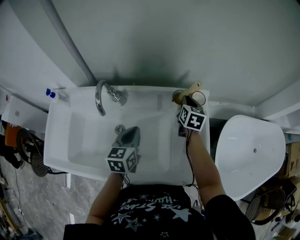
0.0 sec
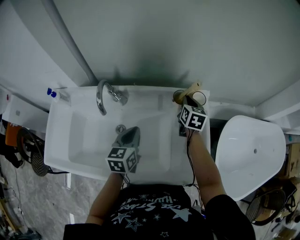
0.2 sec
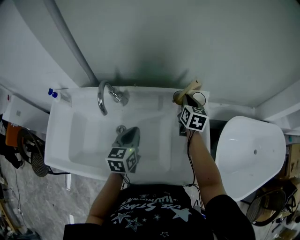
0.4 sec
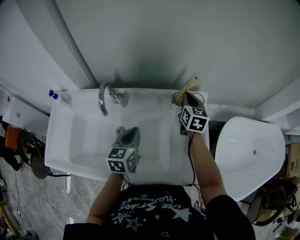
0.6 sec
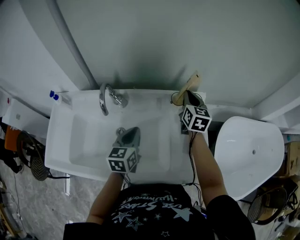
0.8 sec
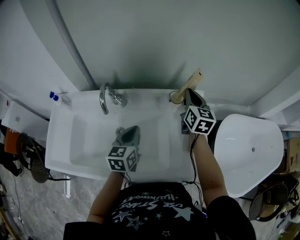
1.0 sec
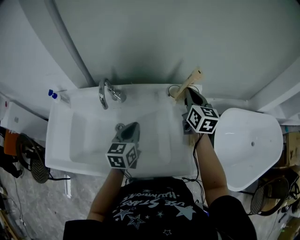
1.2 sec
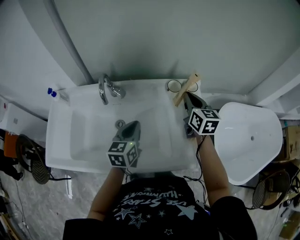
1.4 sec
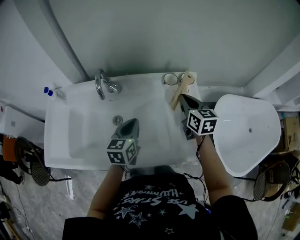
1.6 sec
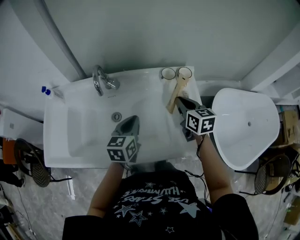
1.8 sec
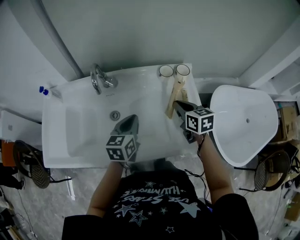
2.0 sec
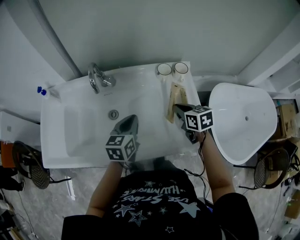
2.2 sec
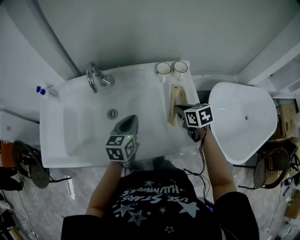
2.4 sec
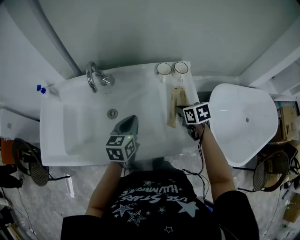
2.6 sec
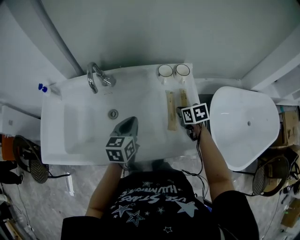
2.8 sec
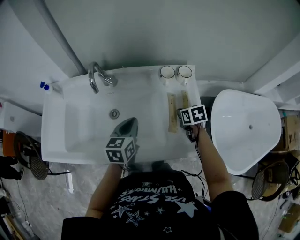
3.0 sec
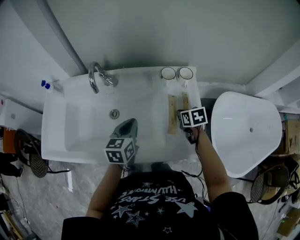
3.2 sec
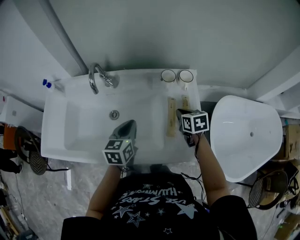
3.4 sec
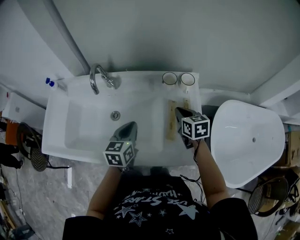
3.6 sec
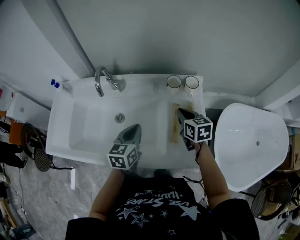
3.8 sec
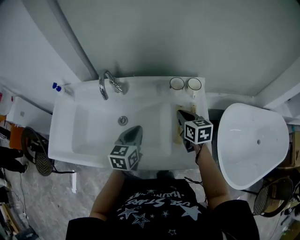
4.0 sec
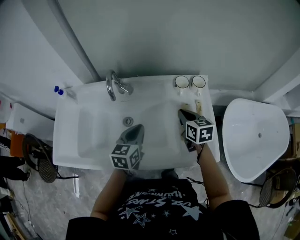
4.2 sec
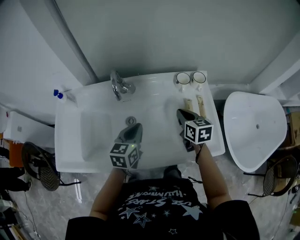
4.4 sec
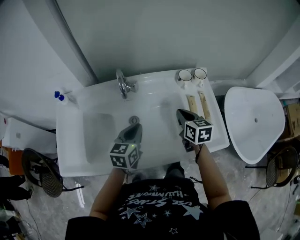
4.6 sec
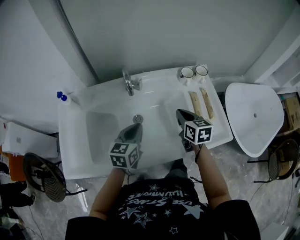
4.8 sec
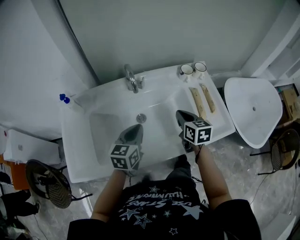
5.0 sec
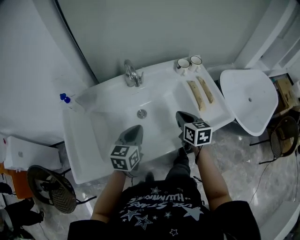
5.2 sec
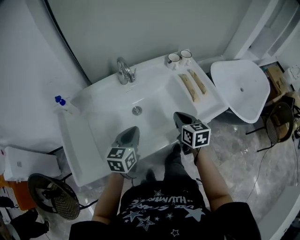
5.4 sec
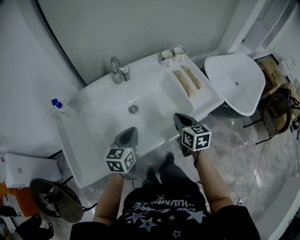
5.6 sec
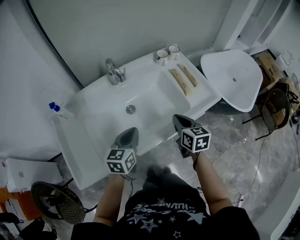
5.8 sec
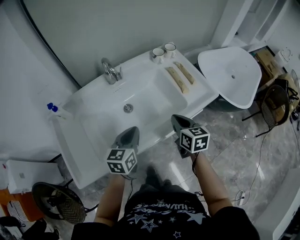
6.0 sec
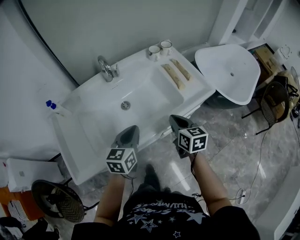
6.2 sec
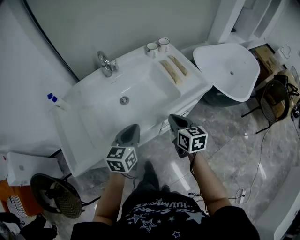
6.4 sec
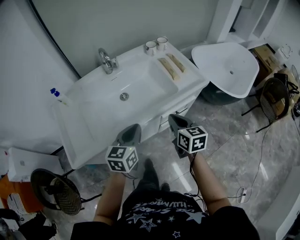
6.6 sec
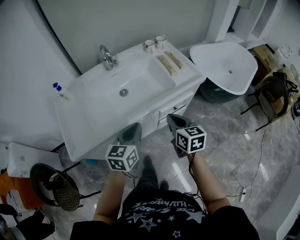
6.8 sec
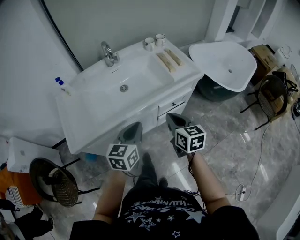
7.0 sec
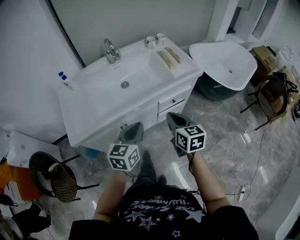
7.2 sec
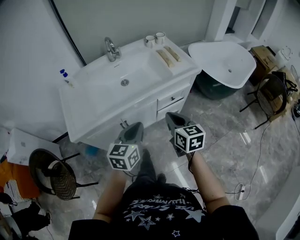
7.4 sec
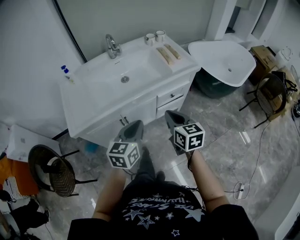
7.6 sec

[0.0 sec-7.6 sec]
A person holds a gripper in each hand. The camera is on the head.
0.0 sec to 1.6 sec: The left gripper moves backward, roughly 5 cm. The right gripper heads backward and upward, covering approximately 15 cm.
1.6 sec to 3.0 sec: The right gripper goes about 15 cm downward, and angles its fingers downward, by roughly 30 degrees.
3.0 sec to 4.6 sec: The right gripper moves to the left and upward, approximately 15 cm, and rotates roughly 30 degrees, while the left gripper moves to the left, about 10 cm.
4.6 sec to 6.0 sec: The right gripper heads backward, covering some 20 cm, and changes its angle by roughly 20 degrees, while the left gripper is displaced backward by roughly 15 cm.
6.0 sec to 7.6 sec: The two grippers go about 25 cm backward.

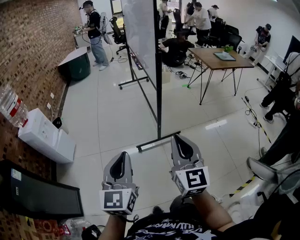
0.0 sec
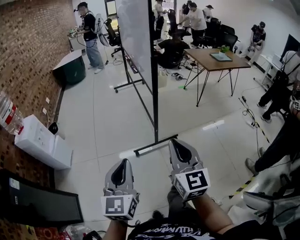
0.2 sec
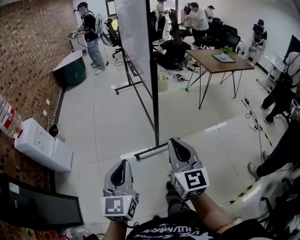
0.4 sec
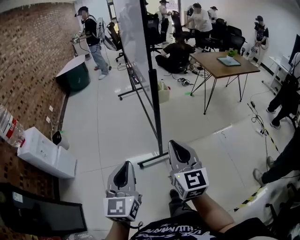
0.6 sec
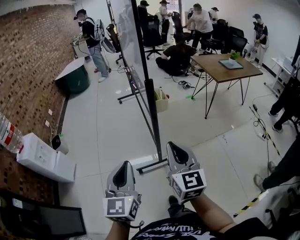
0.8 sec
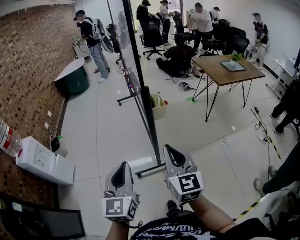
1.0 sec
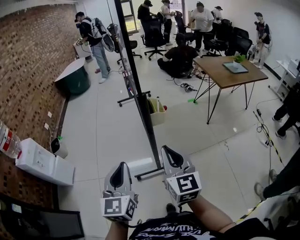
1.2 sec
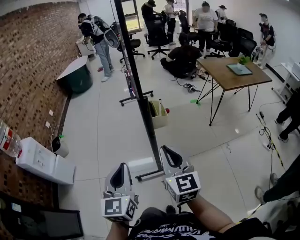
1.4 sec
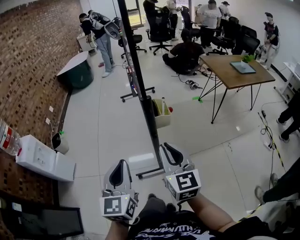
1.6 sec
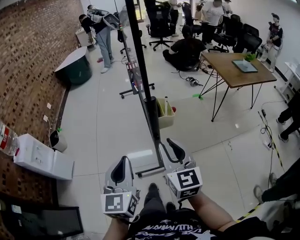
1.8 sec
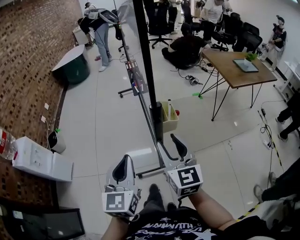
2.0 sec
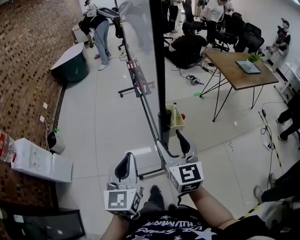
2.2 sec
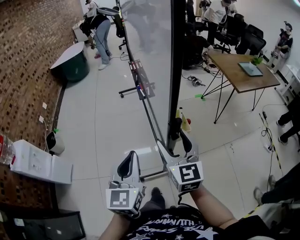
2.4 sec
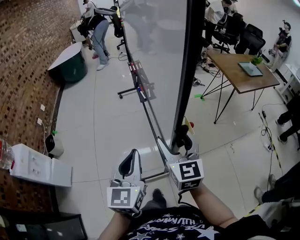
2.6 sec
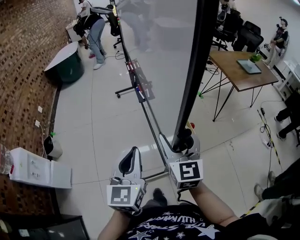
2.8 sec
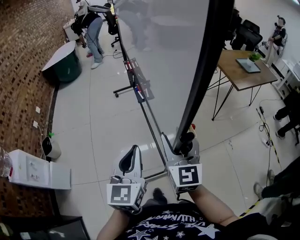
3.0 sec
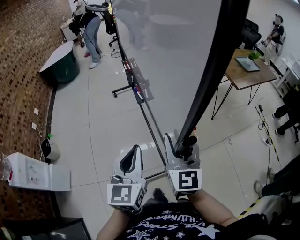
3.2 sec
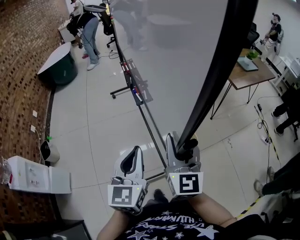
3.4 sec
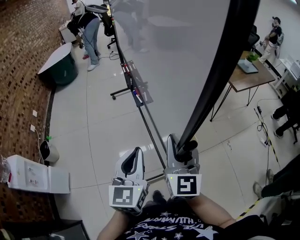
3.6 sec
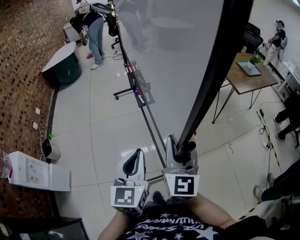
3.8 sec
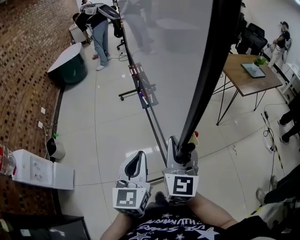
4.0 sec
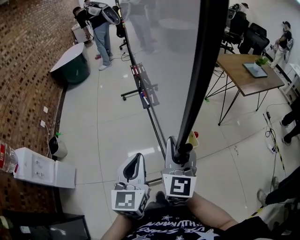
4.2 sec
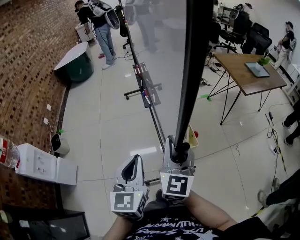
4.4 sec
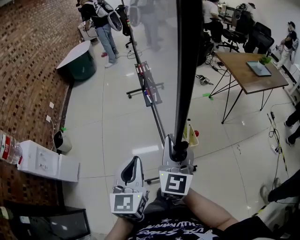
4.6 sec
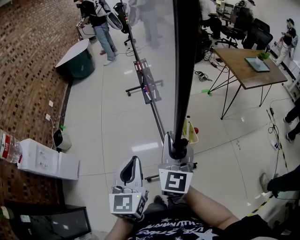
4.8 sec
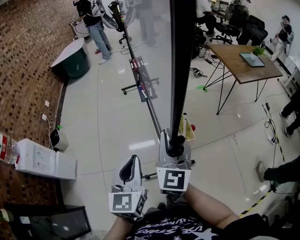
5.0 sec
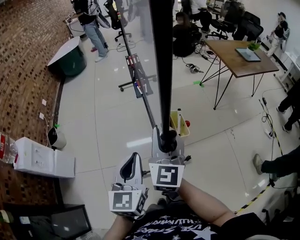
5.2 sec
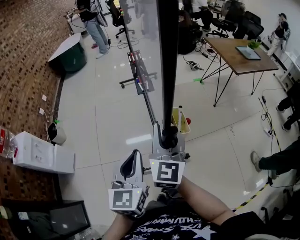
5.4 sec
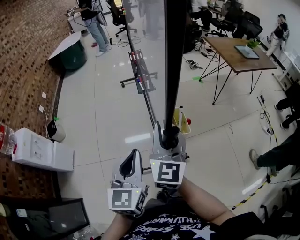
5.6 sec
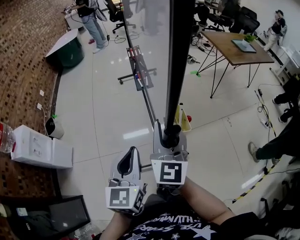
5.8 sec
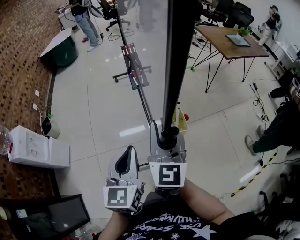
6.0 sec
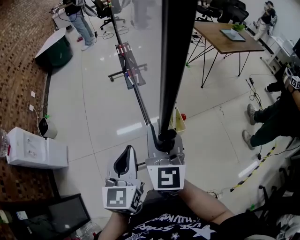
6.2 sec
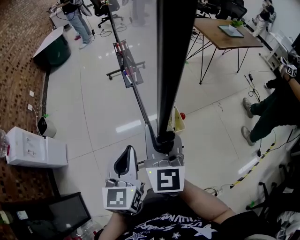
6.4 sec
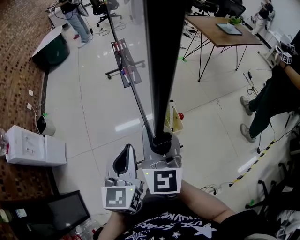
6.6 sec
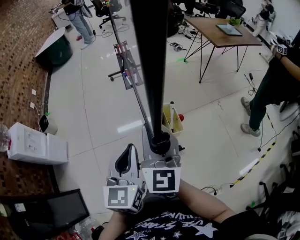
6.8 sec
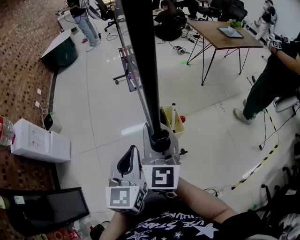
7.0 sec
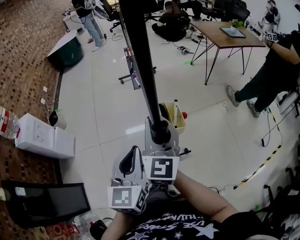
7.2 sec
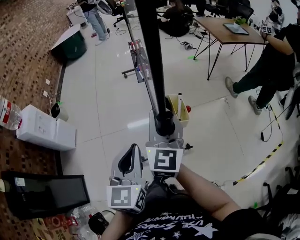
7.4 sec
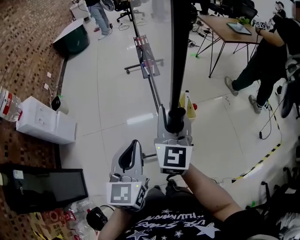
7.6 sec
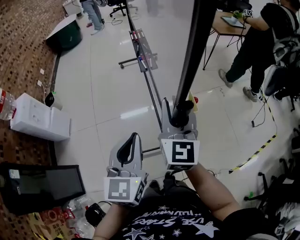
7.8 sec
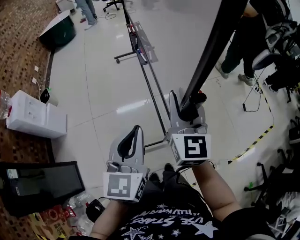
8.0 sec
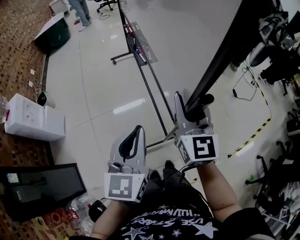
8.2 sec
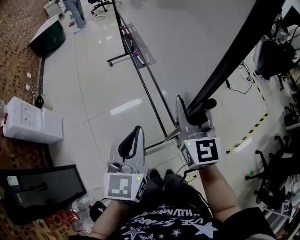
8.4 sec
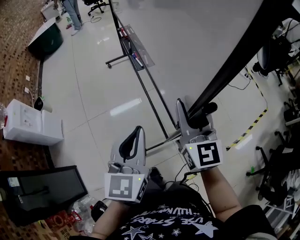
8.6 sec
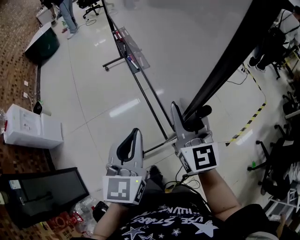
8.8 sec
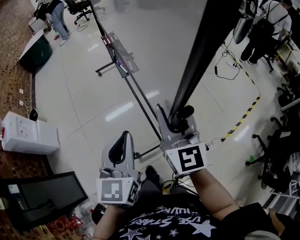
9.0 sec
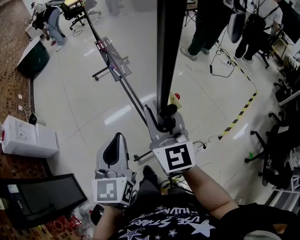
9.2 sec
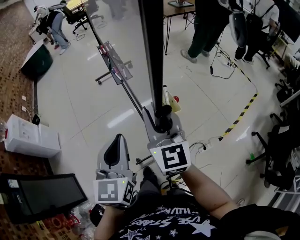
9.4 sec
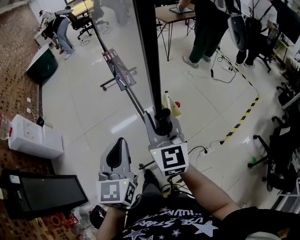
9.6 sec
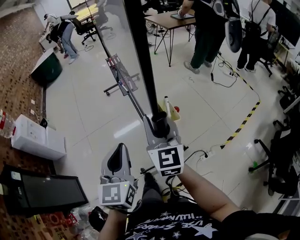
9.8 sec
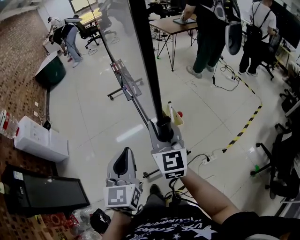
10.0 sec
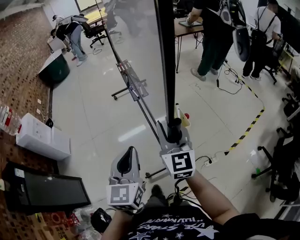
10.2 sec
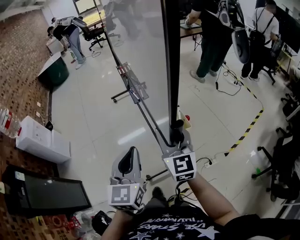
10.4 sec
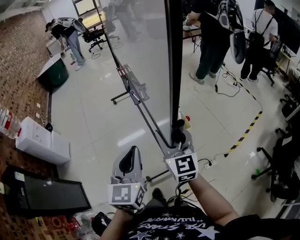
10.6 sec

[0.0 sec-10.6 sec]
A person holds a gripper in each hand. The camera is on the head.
0.0 sec to 1.6 sec: Both grippers move forward, about 30 cm.
1.6 sec to 3.0 sec: The grippers both shift forward by some 15 cm. The right gripper opens up.
3.0 sec to 4.6 sec: The left gripper heads backward, covering about 5 cm; the right gripper closes up.
4.6 sec to 6.0 sec: The grippers both shift backward by about 15 cm.
6.0 sec to 7.6 sec: Both grippers travel together backward, about 15 cm.
7.6 sec to 9.0 sec: The left gripper heads backward and to the right, covering some 15 cm. Meanwhile the right gripper shifts approximately 20 cm backward and to the right.
9.0 sec to 10.6 sec: The two grippers go roughly 10 cm backward. The right gripper opens up.

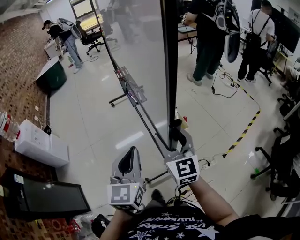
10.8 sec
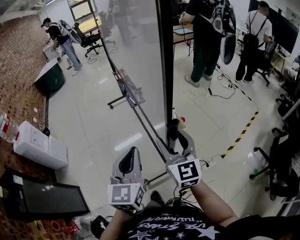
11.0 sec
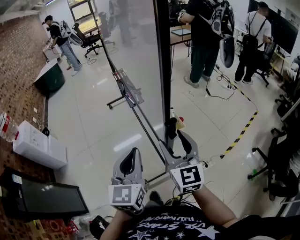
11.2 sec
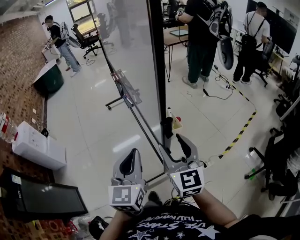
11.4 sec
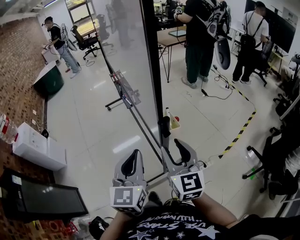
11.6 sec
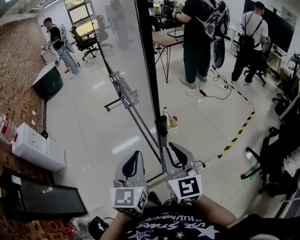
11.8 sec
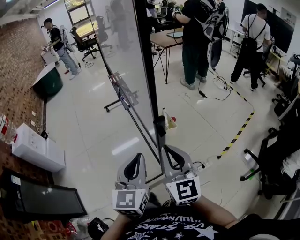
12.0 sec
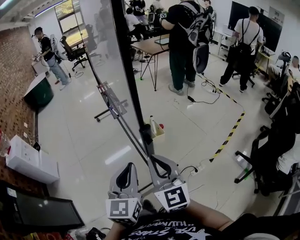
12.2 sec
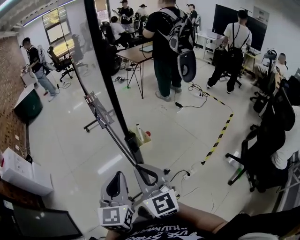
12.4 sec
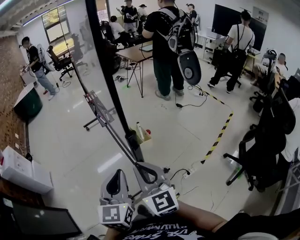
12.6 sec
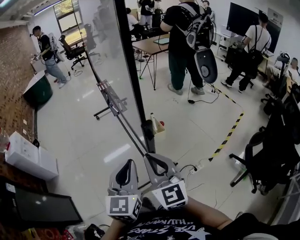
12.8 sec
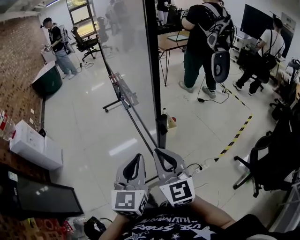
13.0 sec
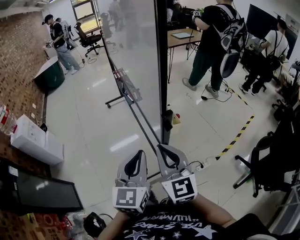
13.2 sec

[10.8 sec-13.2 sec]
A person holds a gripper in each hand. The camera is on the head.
10.8 sec to 12.0 sec: The right gripper goes roughly 10 cm backward, and closes, while the left gripper goes about 5 cm to the right.
12.0 sec to 13.2 sec: There are only small adjustments of the grippers.

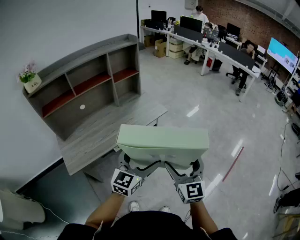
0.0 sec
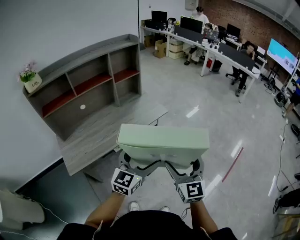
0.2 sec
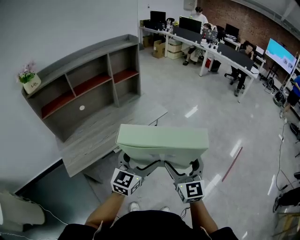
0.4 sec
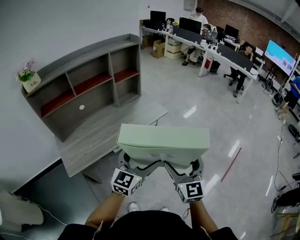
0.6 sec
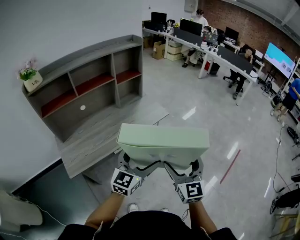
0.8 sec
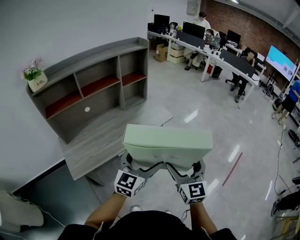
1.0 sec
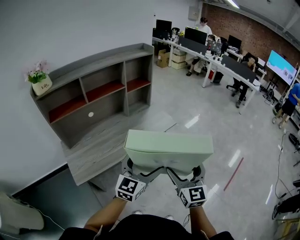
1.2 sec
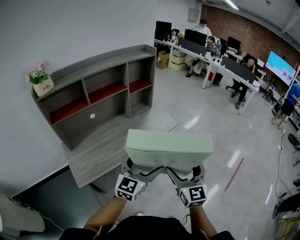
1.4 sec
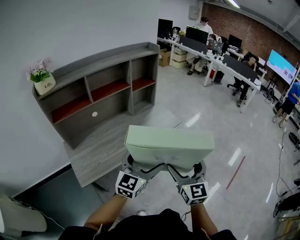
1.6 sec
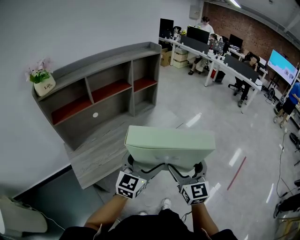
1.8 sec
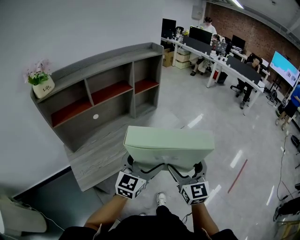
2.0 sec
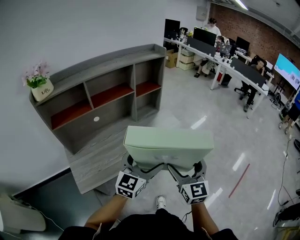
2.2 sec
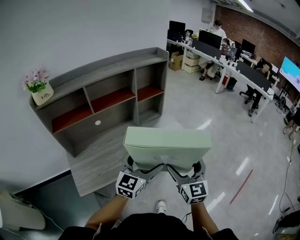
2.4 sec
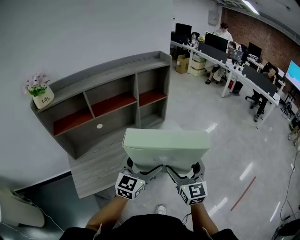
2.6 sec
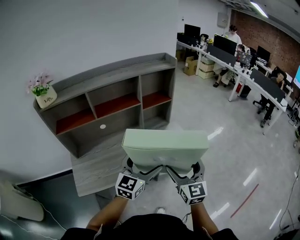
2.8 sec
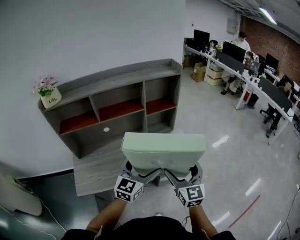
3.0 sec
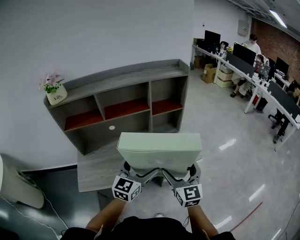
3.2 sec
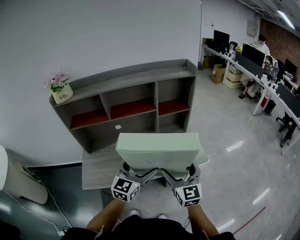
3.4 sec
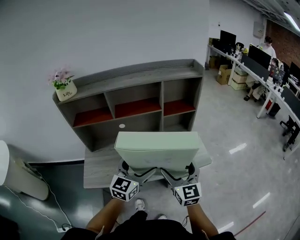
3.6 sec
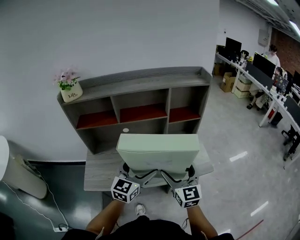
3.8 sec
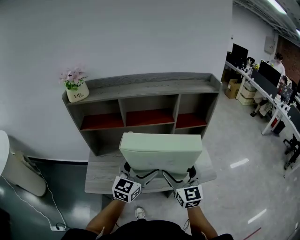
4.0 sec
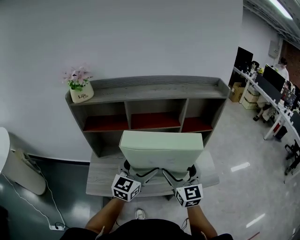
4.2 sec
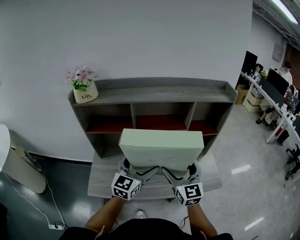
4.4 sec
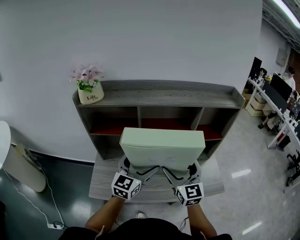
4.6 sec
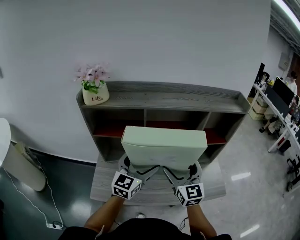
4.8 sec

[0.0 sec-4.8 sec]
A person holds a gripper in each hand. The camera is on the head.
0.0 sec to 1.6 sec: The grippers both shift to the left by about 15 cm.
1.6 sec to 3.2 sec: Both grippers travel together forward, about 20 cm. The left gripper swivels approximately 20 degrees, while the right gripper rotates some 20 degrees.
3.2 sec to 4.8 sec: Both grippers move to the left and forward, approximately 25 cm.
